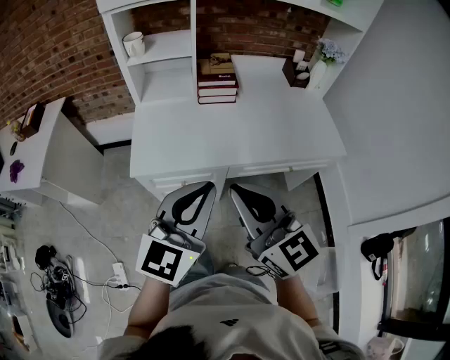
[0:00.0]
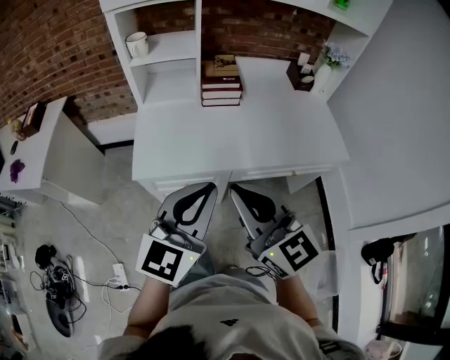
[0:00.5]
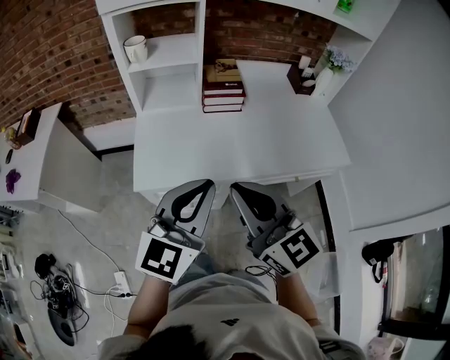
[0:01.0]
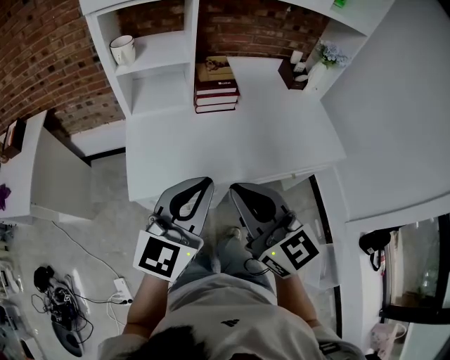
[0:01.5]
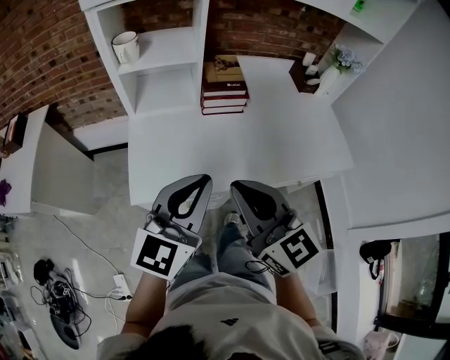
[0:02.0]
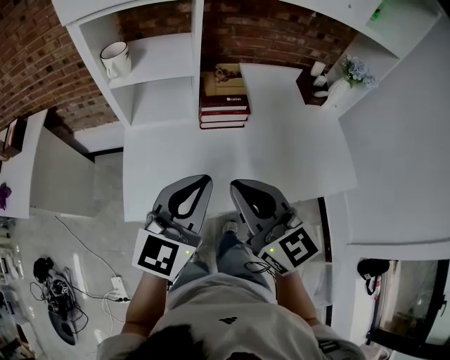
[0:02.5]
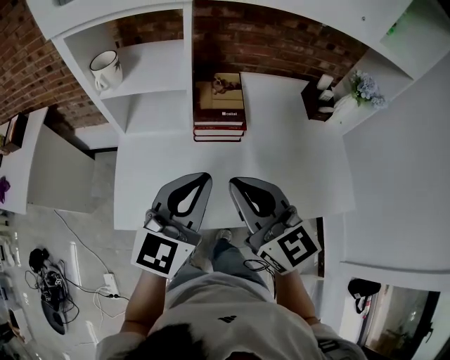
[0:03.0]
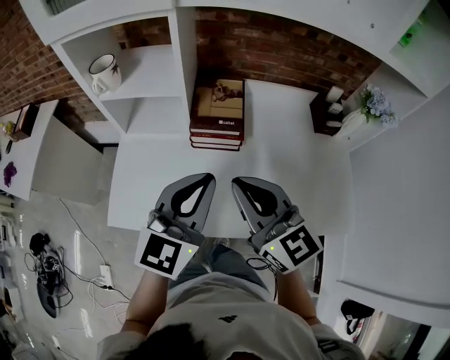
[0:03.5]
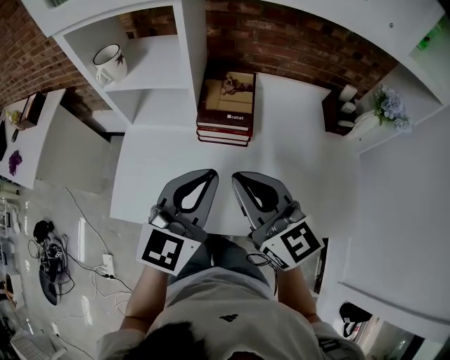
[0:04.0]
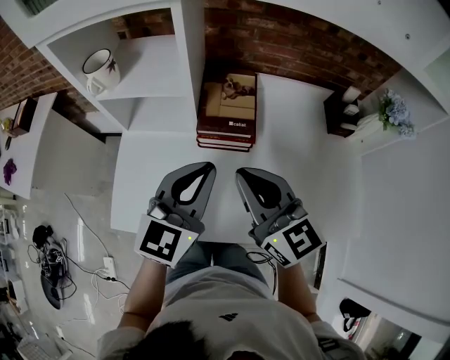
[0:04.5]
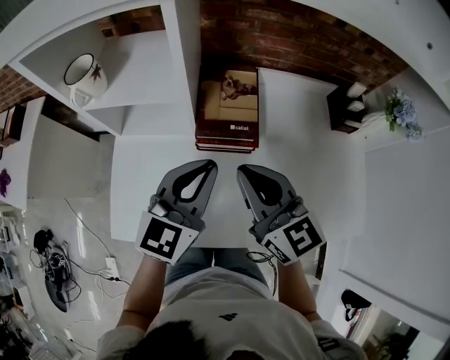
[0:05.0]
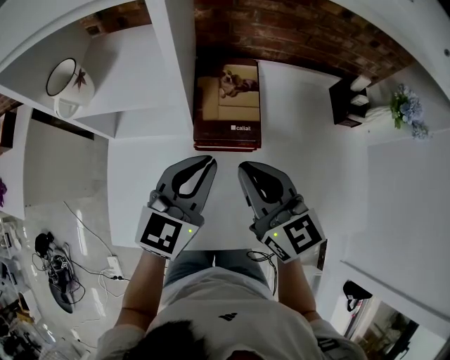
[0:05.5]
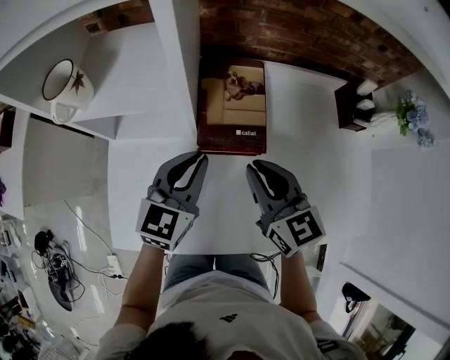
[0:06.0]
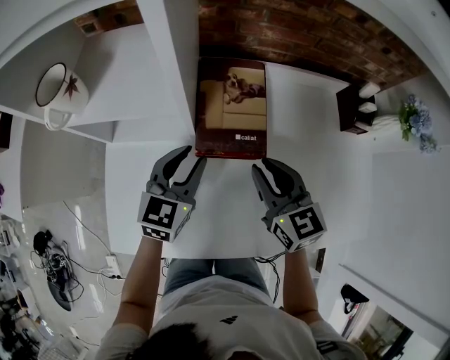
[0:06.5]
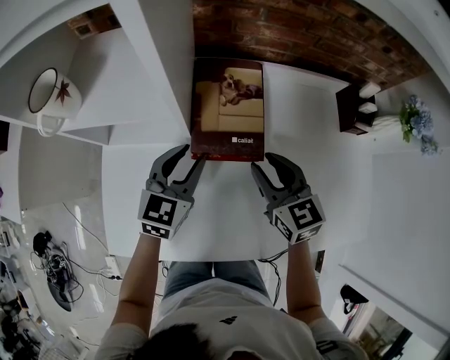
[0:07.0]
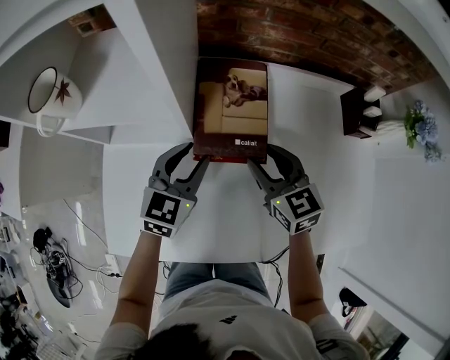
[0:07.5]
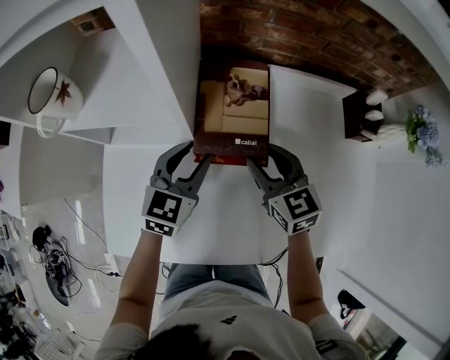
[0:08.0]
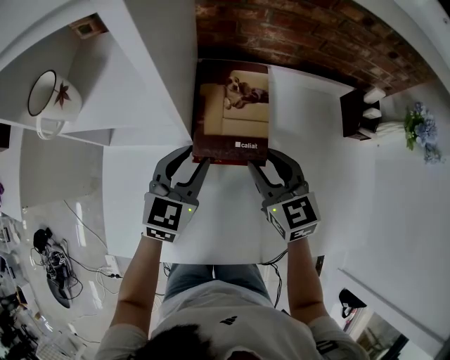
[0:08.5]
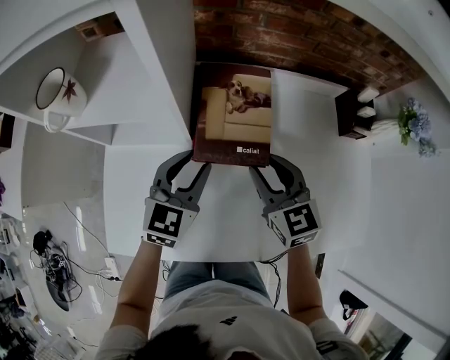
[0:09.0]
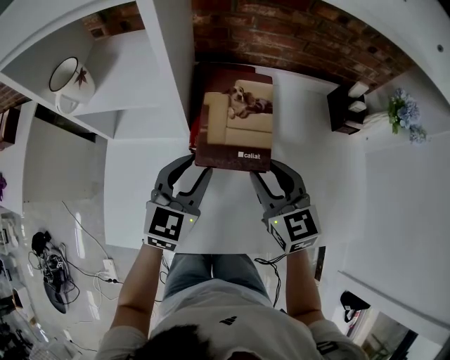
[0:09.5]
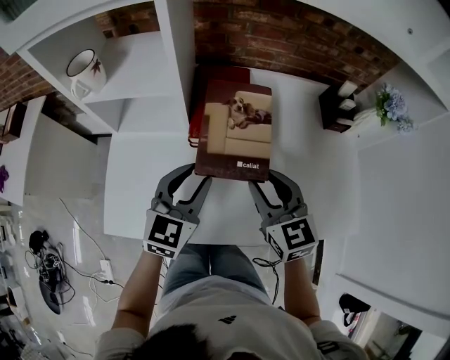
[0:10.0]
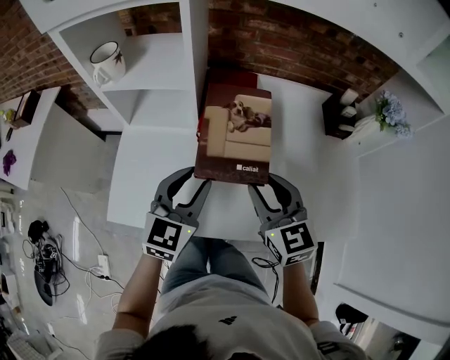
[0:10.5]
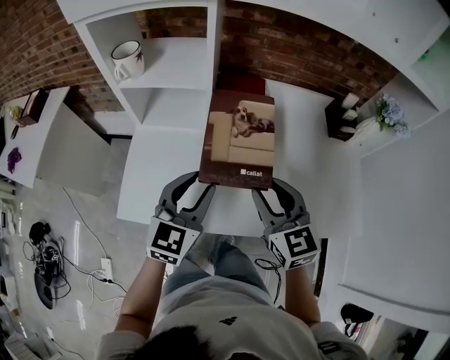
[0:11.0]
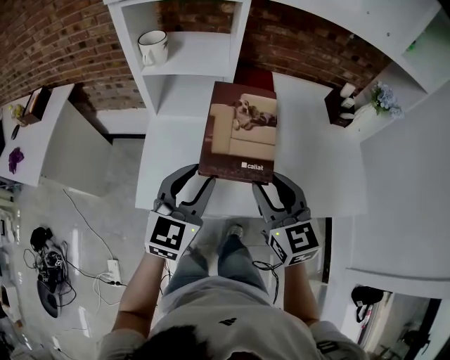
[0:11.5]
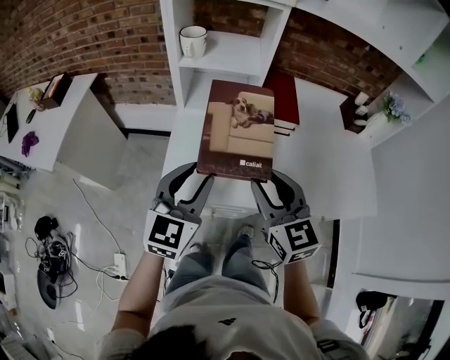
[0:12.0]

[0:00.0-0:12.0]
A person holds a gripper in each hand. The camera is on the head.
0:00.0 to 0:02.0: The grippers both shift forward by about 15 cm.
0:02.0 to 0:04.0: Both grippers travel together forward and to the right, approximately 20 cm.
0:04.0 to 0:06.0: The two grippers go about 20 cm forward and downward.
0:06.0 to 0:08.0: The left gripper heads downward, covering about 5 cm, and opens up. Meanwhile the right gripper shifts approximately 10 cm downward and forward, and opens up.
0:08.0 to 0:10.0: Both grippers travel together backward and upward, approximately 15 cm.
0:10.0 to 0:12.0: Both grippers travel together to the left and backward, some 25 cm.

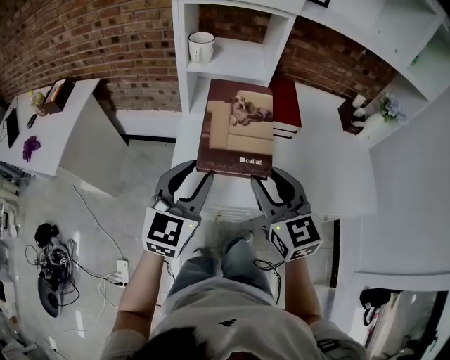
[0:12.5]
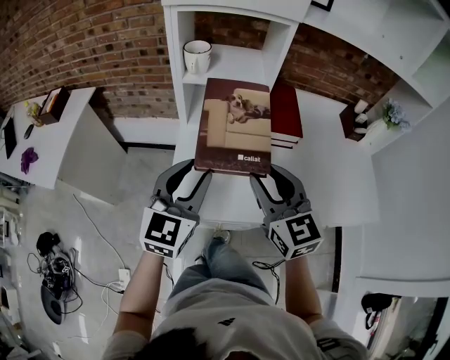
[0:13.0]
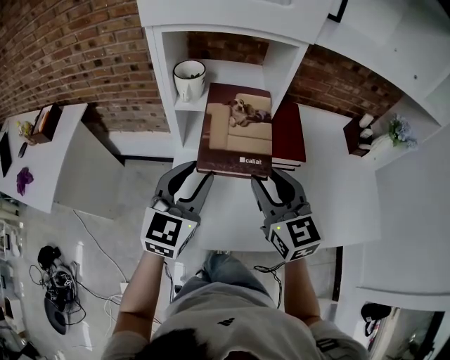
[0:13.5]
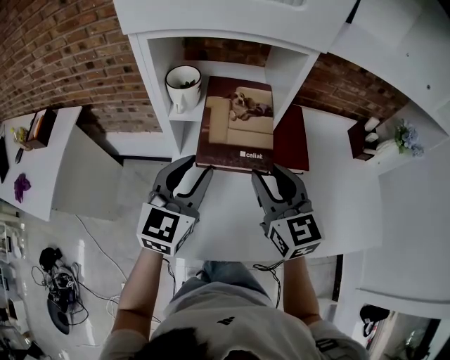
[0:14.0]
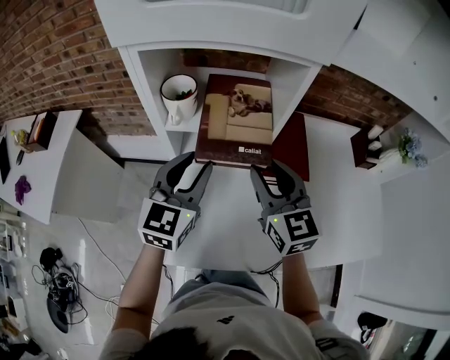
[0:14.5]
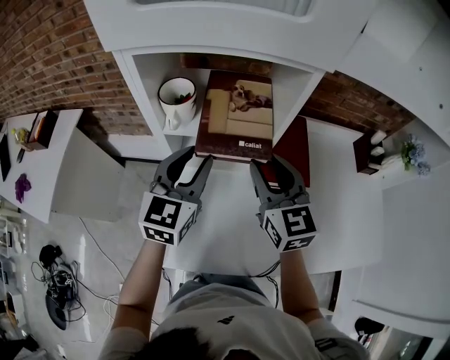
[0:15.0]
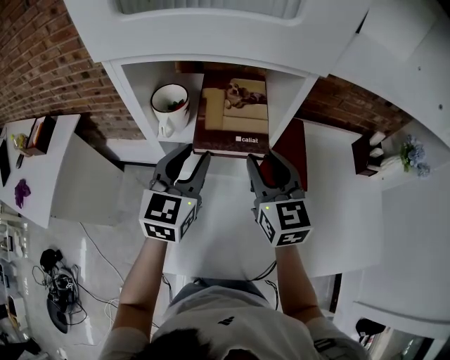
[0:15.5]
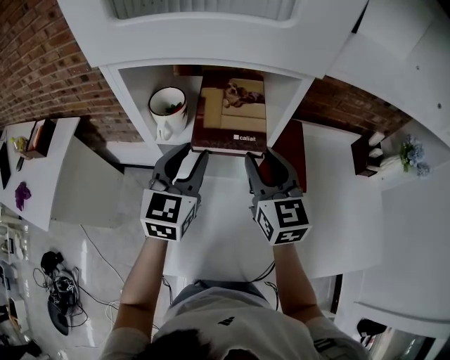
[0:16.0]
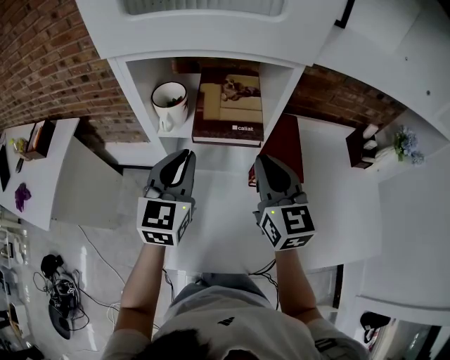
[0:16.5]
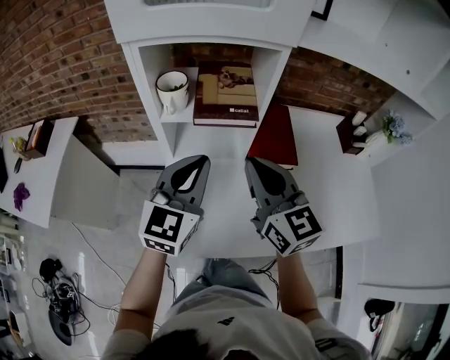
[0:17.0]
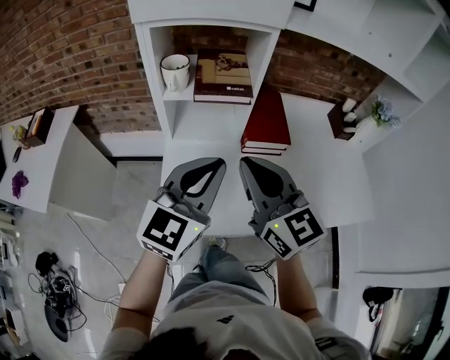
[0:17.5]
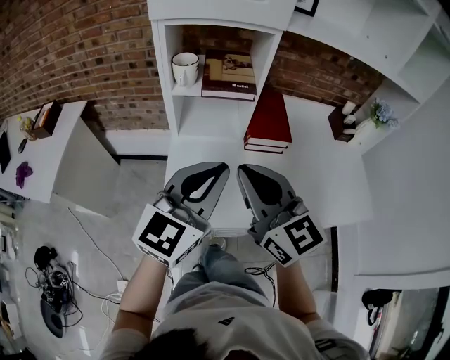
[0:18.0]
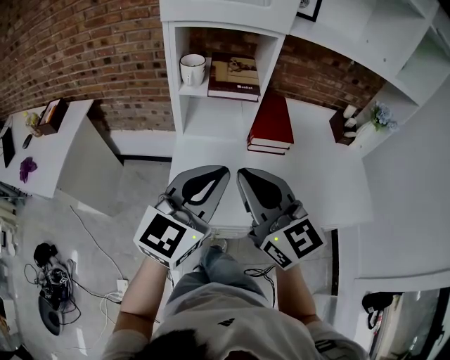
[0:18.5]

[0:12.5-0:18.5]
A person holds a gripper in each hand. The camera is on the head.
0:12.5 to 0:14.5: The two grippers go about 25 cm forward.
0:14.5 to 0:16.5: The right gripper closes. Meanwhile the left gripper closes.
0:16.5 to 0:18.5: The two grippers go roughly 25 cm backward. The left gripper swivels some 20 degrees.

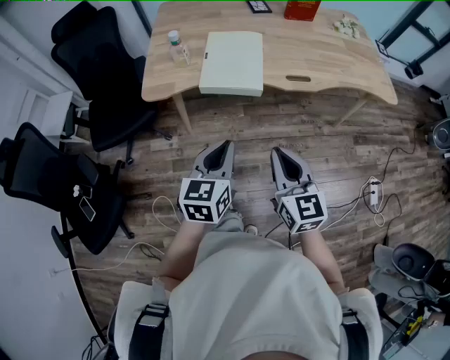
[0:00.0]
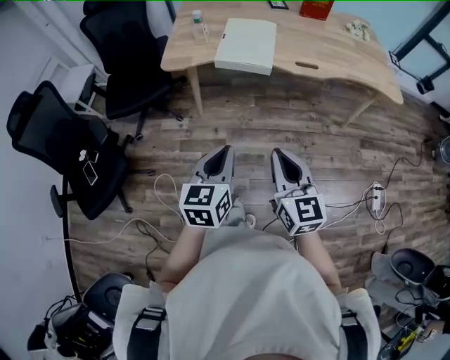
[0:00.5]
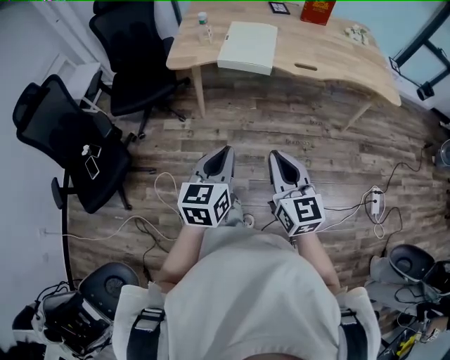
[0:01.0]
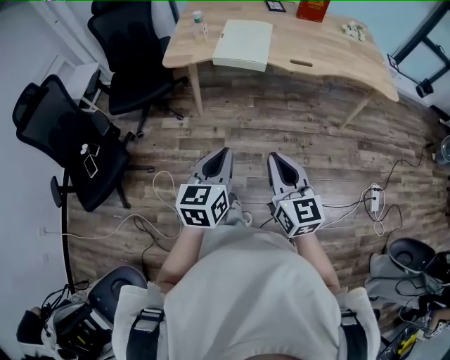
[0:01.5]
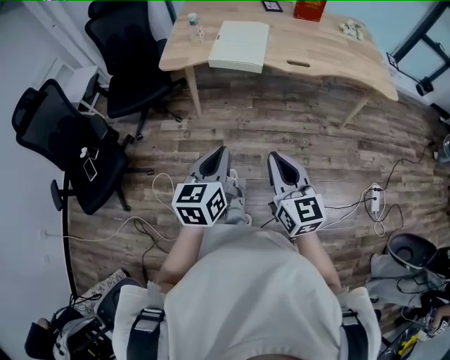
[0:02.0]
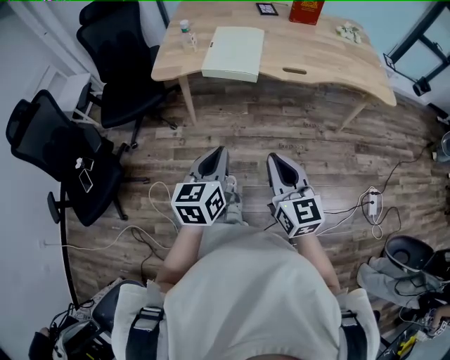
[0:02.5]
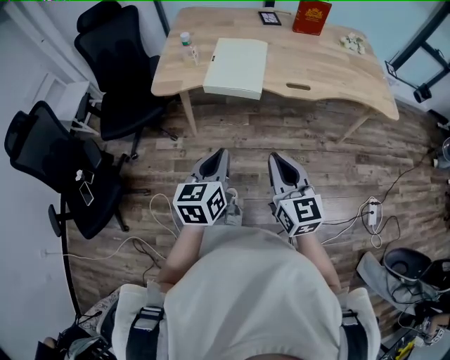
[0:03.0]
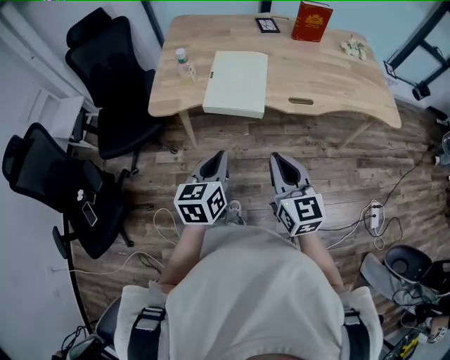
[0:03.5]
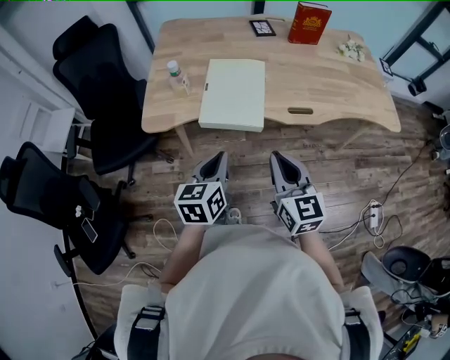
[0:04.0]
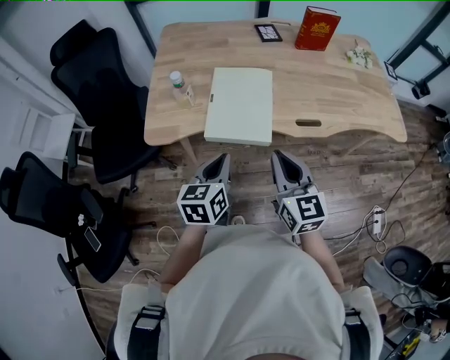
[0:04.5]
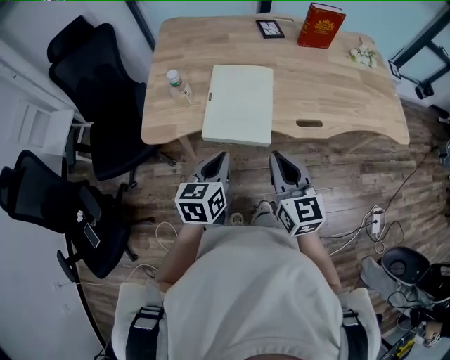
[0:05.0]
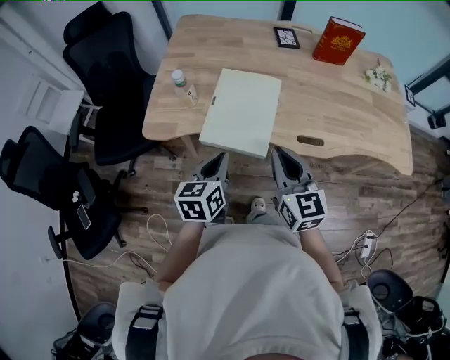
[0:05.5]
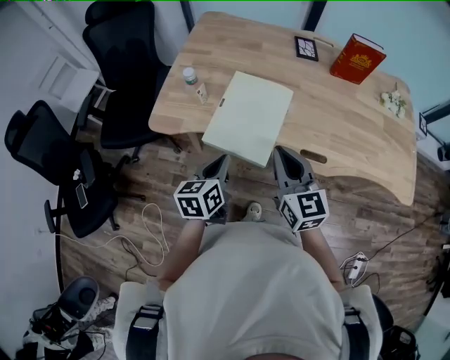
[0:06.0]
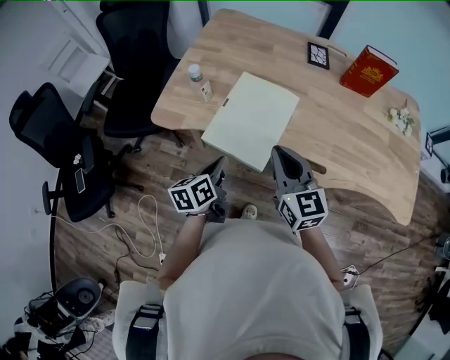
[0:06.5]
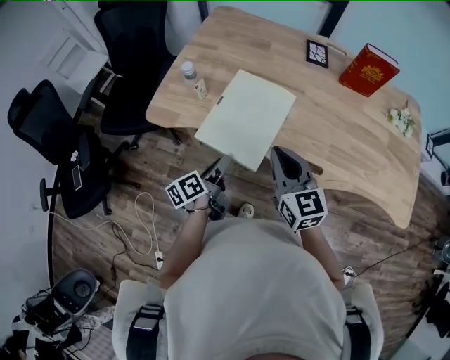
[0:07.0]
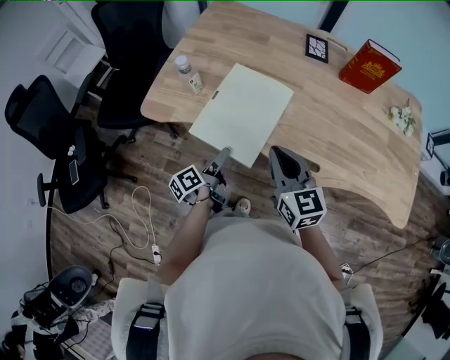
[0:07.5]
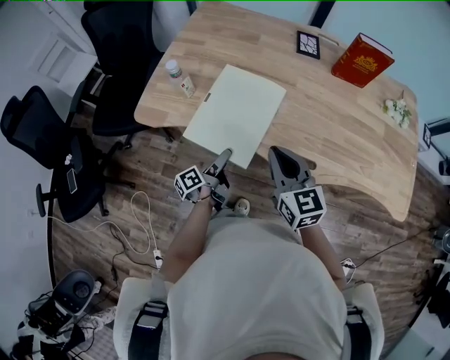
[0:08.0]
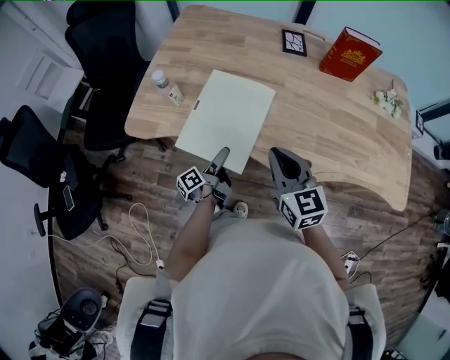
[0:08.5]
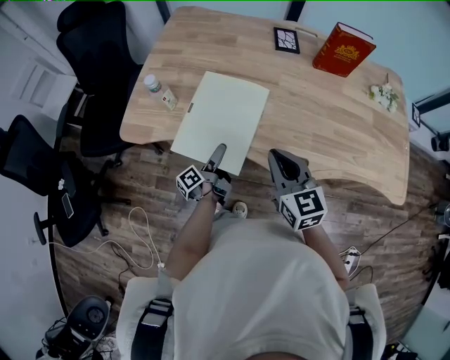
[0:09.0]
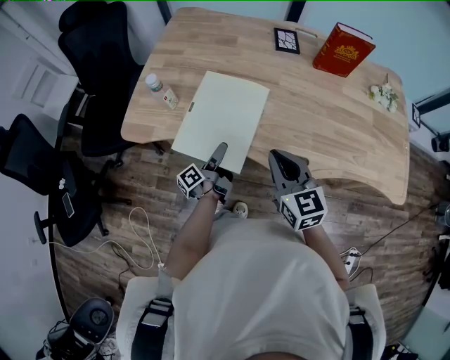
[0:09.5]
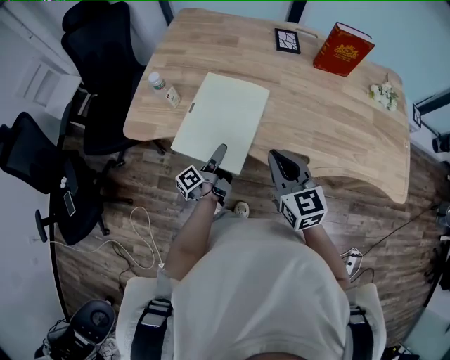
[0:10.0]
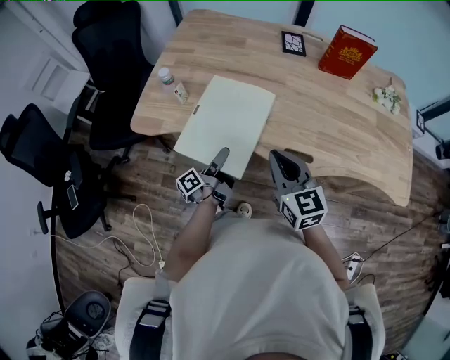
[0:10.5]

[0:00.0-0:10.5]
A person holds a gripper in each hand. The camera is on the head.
0:00.0 to 0:02.0: Both grippers travel together backward, approximately 20 cm.
0:02.0 to 0:04.0: Both grippers move forward, some 30 cm.
0:04.0 to 0:06.5: The right gripper moves forward, some 20 cm, and swivels some 20 degrees, while the left gripper heads forward and downward, covering roughly 15 cm, and changes its angle by about 30 degrees.
0:06.5 to 0:08.5: The left gripper shifts approximately 15 cm downward and to the right, rolls counterclockwise, seen from behind, by some 40 degrees, and opens up. Meanwhile the right gripper moves to the right, roughly 5 cm.
0:08.5 to 0:10.5: The left gripper closes.
